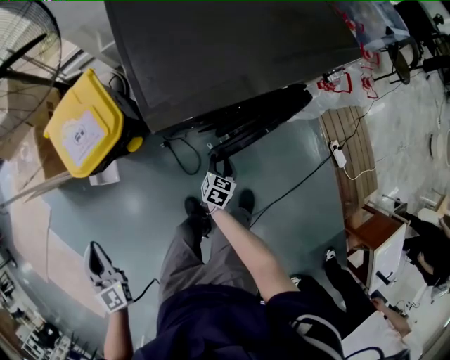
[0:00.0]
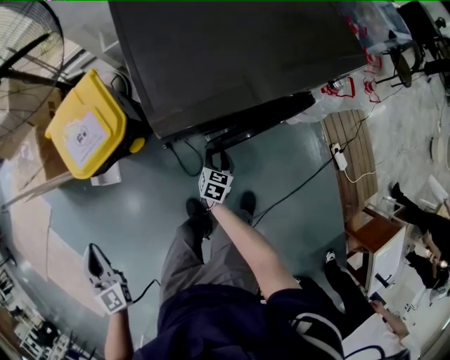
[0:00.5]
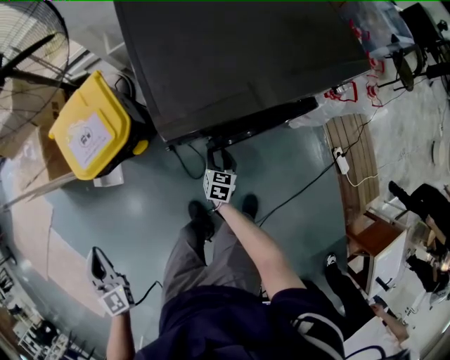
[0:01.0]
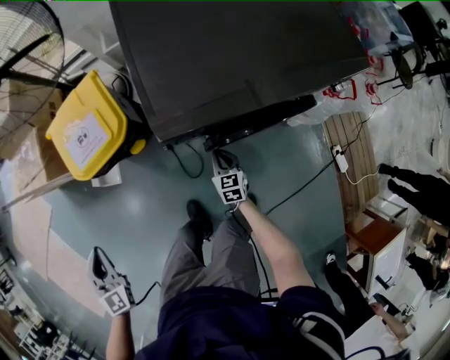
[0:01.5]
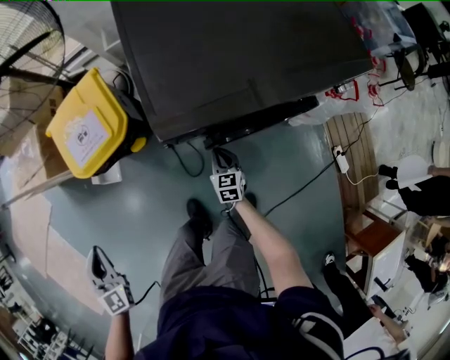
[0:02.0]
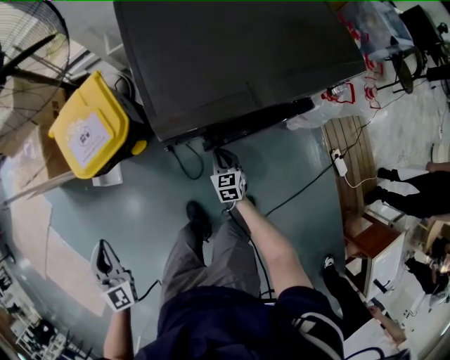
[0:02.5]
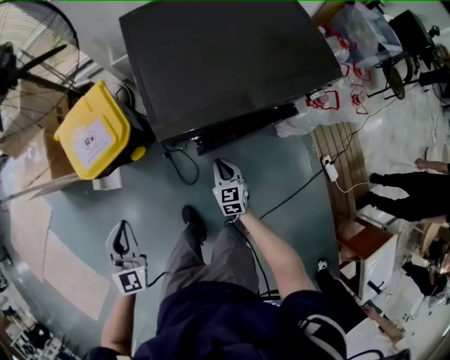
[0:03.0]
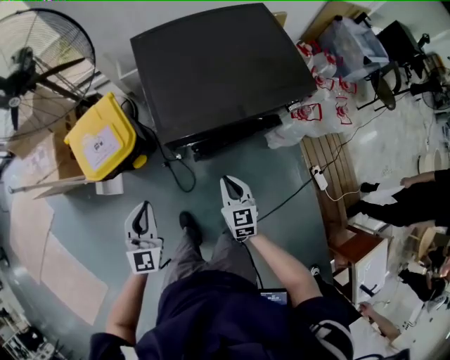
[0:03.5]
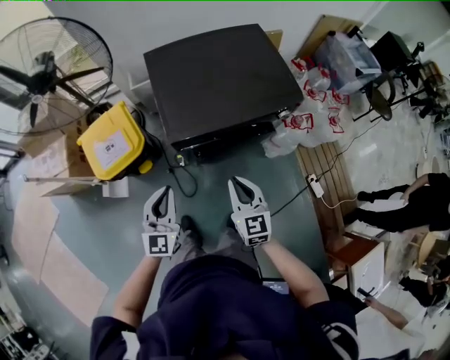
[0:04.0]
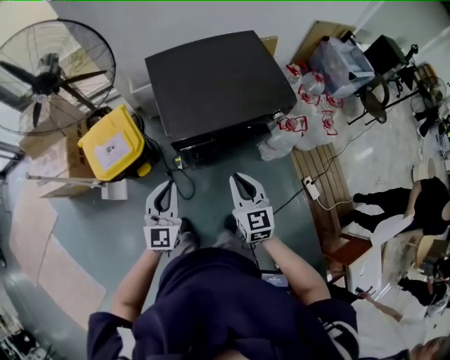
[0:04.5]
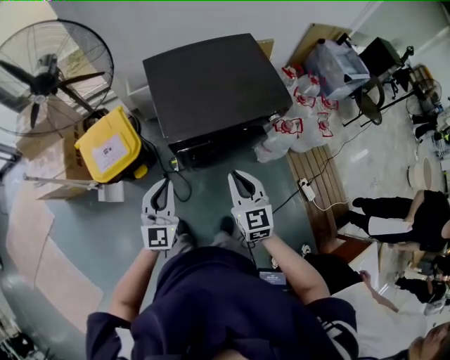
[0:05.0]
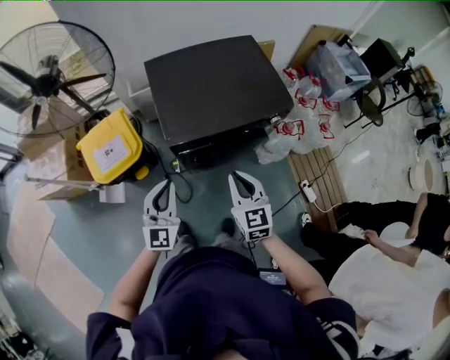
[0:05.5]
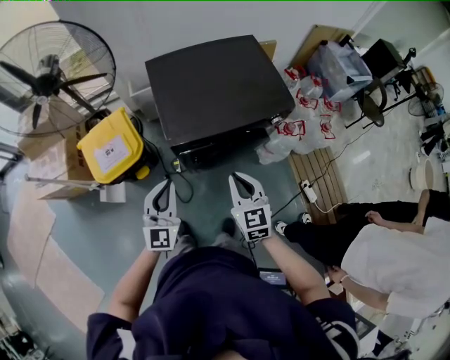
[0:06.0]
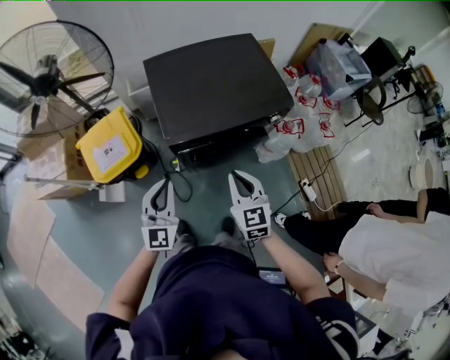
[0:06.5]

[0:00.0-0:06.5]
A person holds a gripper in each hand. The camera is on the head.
0:00.0 to 0:02.0: The right gripper travels forward by approximately 5 cm, swivels about 40 degrees, and closes.
0:02.0 to 0:04.5: The left gripper heads to the right and upward, covering about 35 cm, and turns by some 40 degrees. The right gripper travels upward by about 50 cm, and turns by approximately 20 degrees.
0:04.5 to 0:06.5: There are only small adjustments of the grippers.

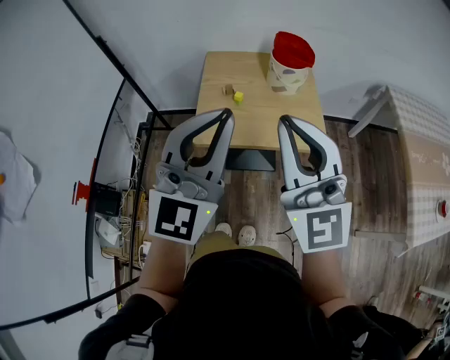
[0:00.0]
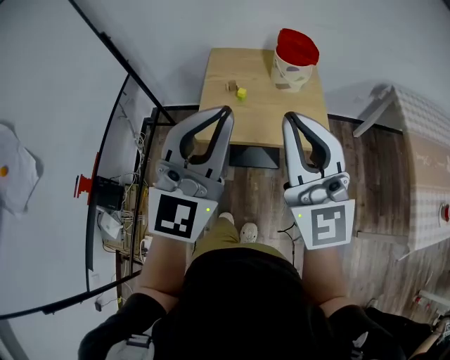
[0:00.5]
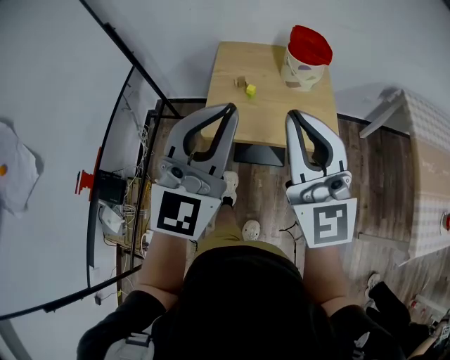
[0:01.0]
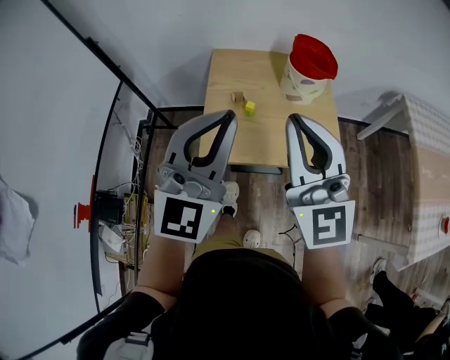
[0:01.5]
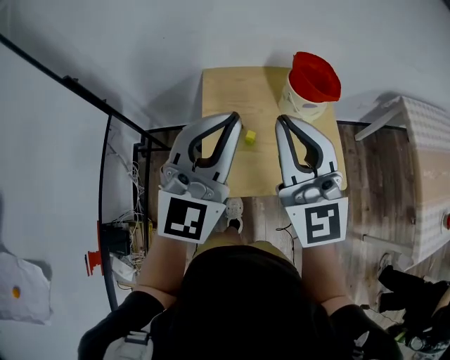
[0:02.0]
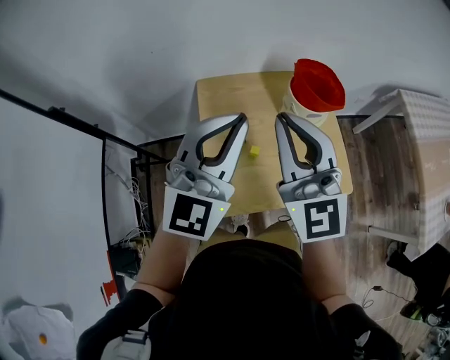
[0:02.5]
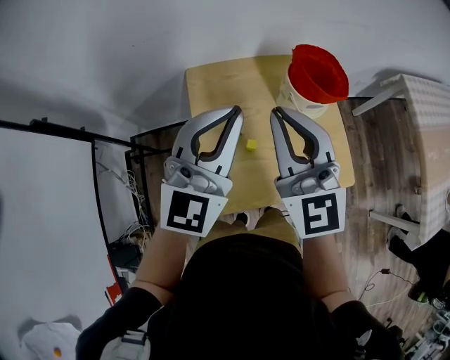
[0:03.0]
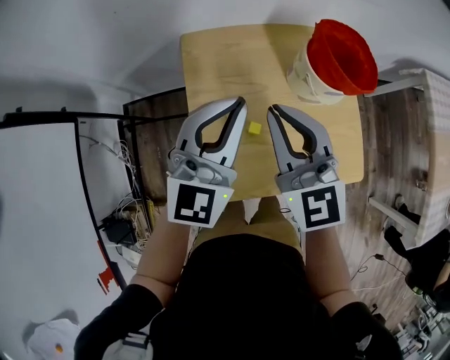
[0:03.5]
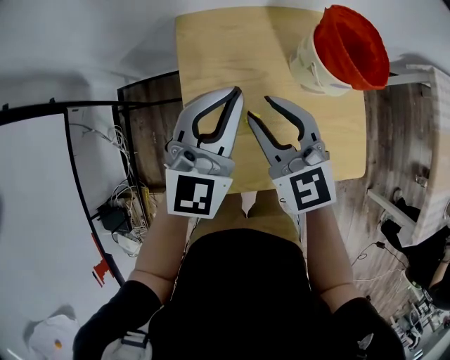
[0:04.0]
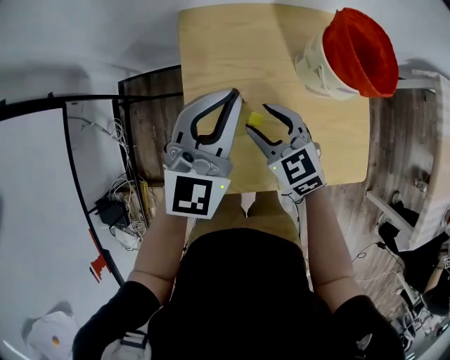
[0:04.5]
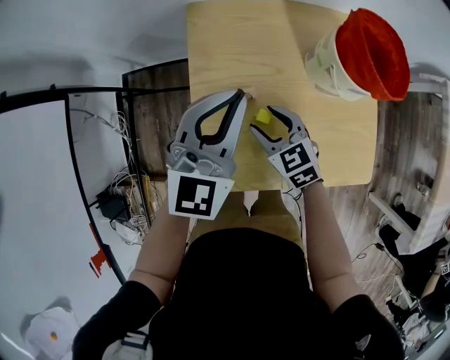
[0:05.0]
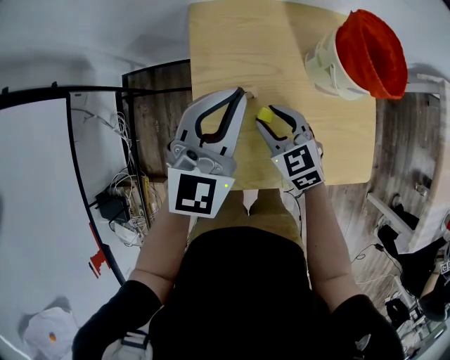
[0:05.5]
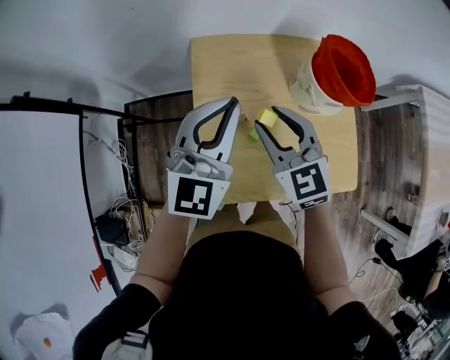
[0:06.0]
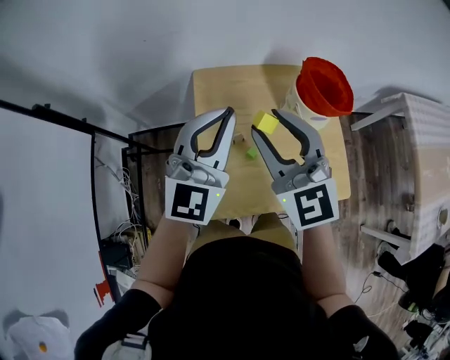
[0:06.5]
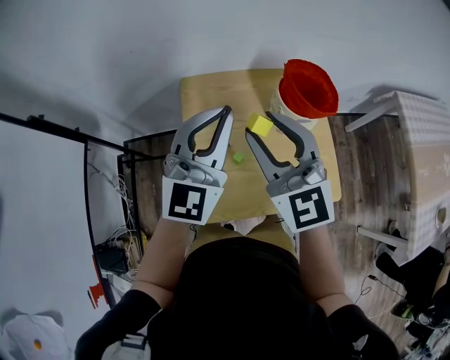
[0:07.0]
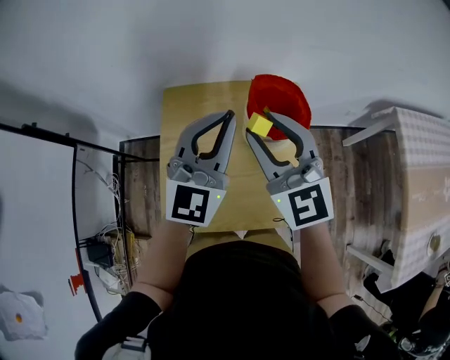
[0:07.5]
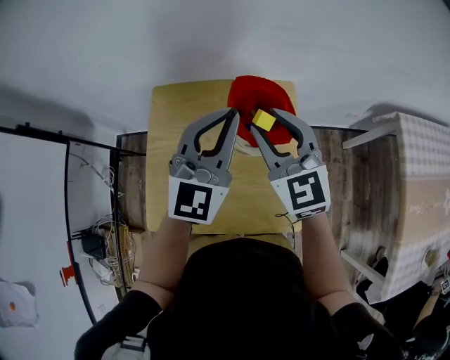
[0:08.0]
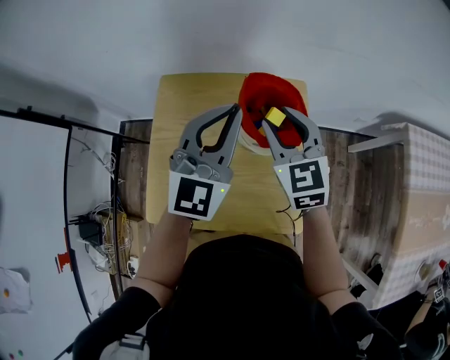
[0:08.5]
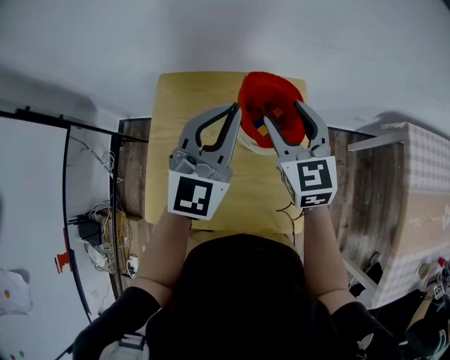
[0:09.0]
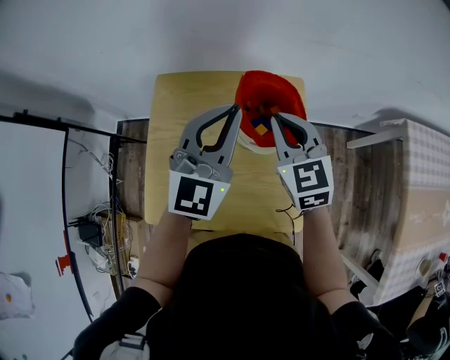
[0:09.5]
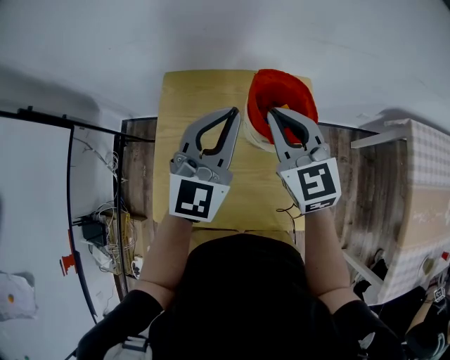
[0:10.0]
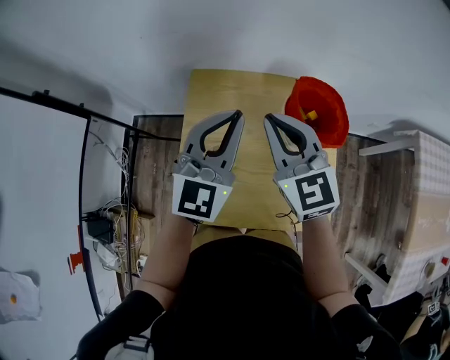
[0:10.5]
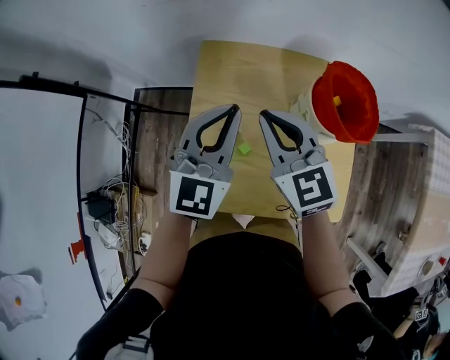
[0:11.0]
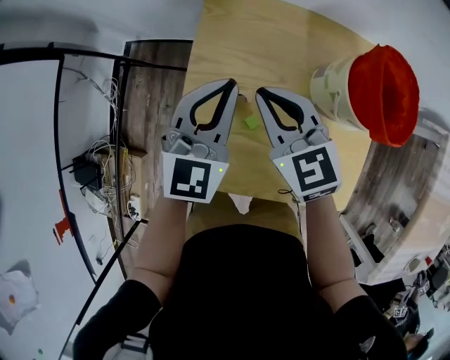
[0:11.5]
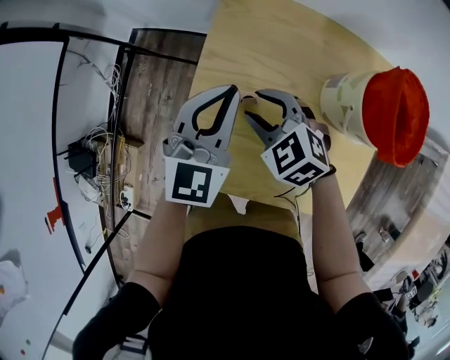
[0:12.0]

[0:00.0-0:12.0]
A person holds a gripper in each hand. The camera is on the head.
0:00.0 to 0:02.0: The grippers both shift forward by some 25 cm.
0:02.0 to 0:04.0: Both grippers travel together downward and forward, approximately 25 cm. The right gripper angles its fingers downward, by about 30 degrees, and opens its fingers.
0:04.0 to 0:06.0: The right gripper goes downward and returns, about 15 cm each way.
0:06.0 to 0:08.0: The right gripper shifts approximately 25 cm to the right and upward; the left gripper goes some 25 cm to the right.
0:08.0 to 0:10.0: The left gripper moves roughly 5 cm. The right gripper closes its fingers.
0:10.0 to 0:12.0: The right gripper changes place by about 35 cm, angles its fingers downward, by roughly 30 degrees, and opens its fingers; the left gripper shifts by some 25 cm, and swivels about 20 degrees.

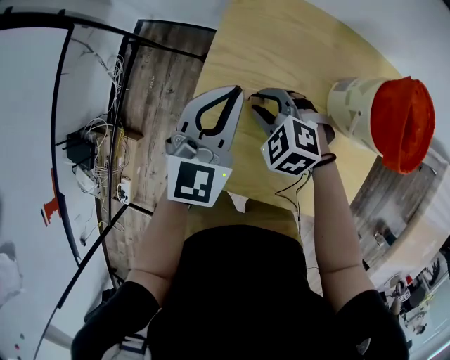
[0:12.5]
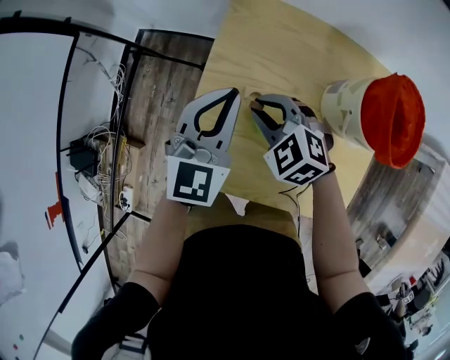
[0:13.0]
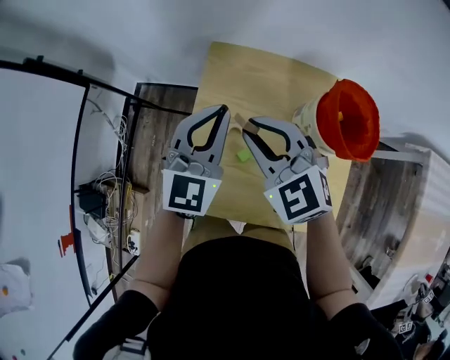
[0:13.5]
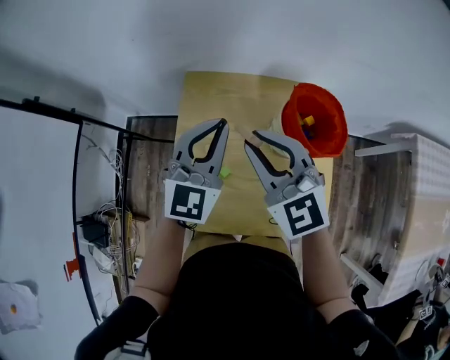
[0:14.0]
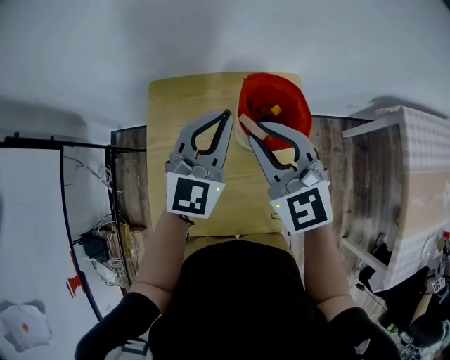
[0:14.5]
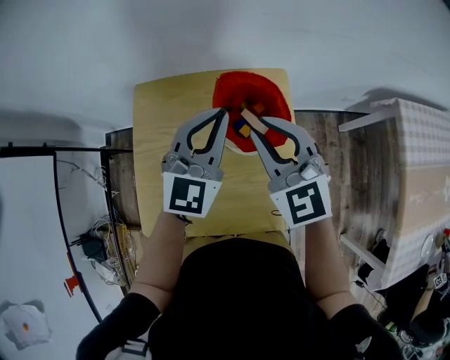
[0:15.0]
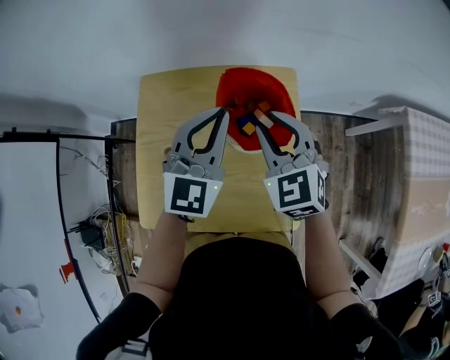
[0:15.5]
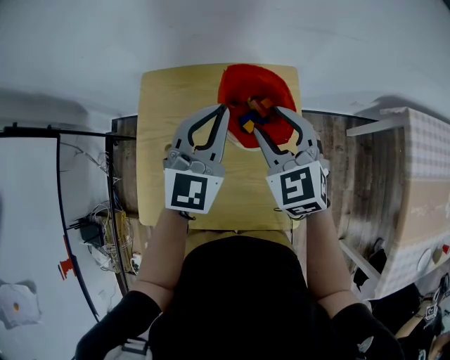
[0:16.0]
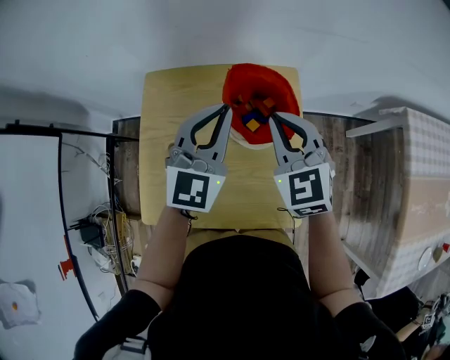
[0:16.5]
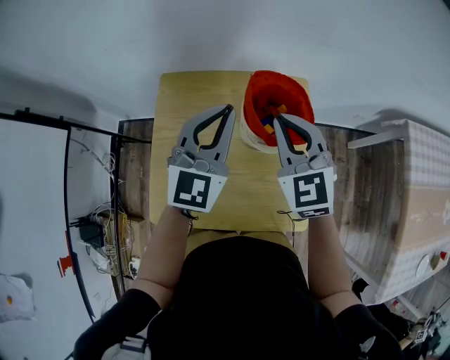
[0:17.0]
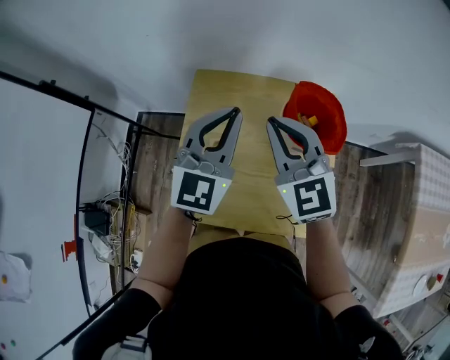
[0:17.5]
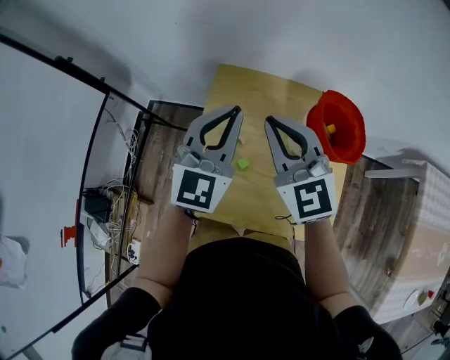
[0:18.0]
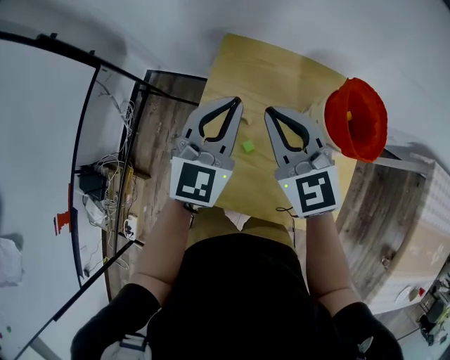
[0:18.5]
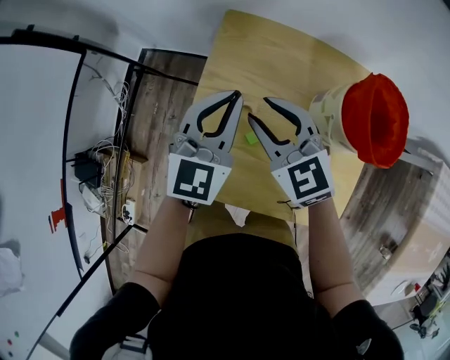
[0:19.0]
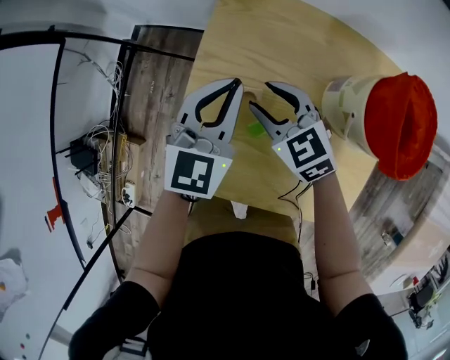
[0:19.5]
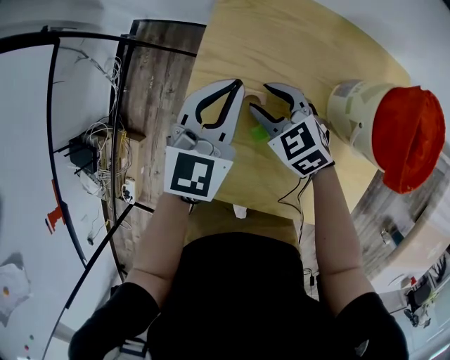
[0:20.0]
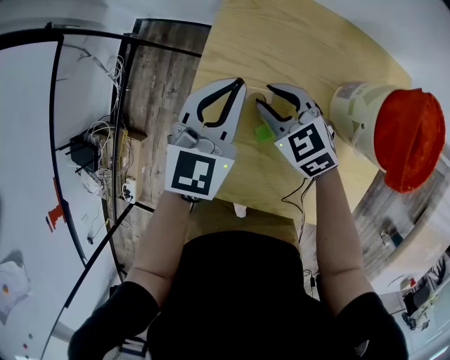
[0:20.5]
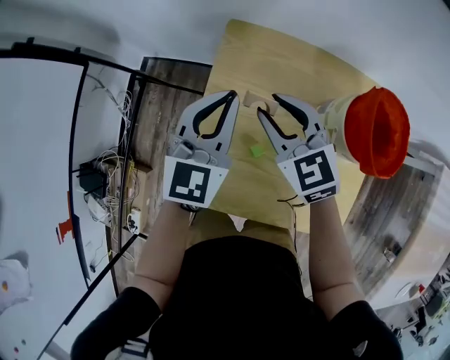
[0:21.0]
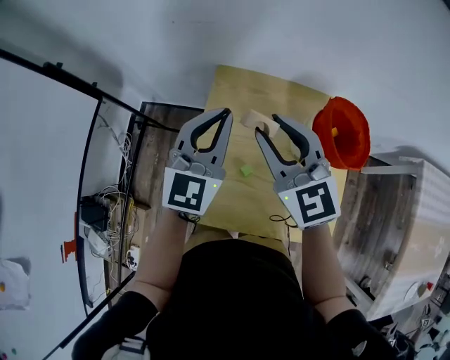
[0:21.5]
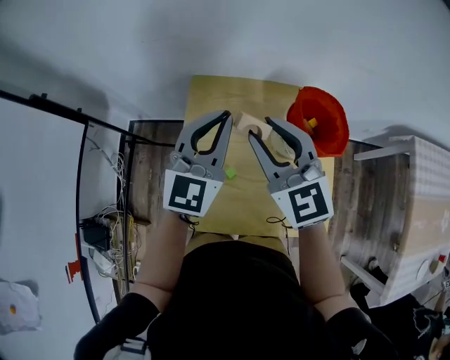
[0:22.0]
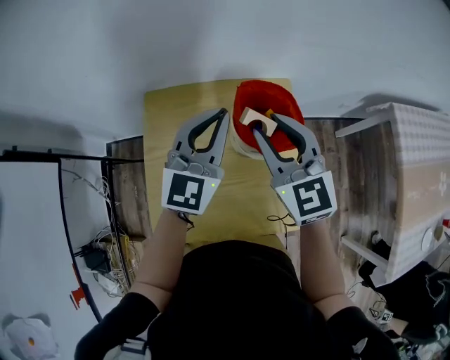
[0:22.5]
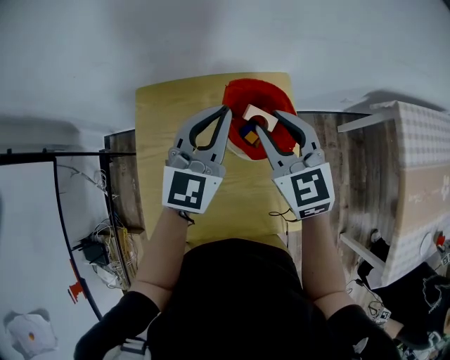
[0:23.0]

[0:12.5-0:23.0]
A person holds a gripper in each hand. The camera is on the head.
0:12.5 to 0:14.5: The left gripper moves about 25 cm, and changes its angle by roughly 20 degrees. The right gripper heads upward, covering about 30 cm, and tilts its fingers about 40 degrees upward.
0:14.5 to 0:16.5: The right gripper moves to the right, some 10 cm, and opens, then closes once more.
0:16.5 to 0:19.0: Both grippers move to the left, some 25 cm. The right gripper swivels about 30 degrees, and opens up.
0:19.0 to 0:21.0: The left gripper moves approximately 10 cm downward and comes back, while the right gripper reaches roughly 15 cm downward, then returns.
0:21.0 to 0:23.0: The two grippers go roughly 25 cm to the right. The left gripper turns by roughly 20 degrees. Meanwhile the right gripper changes its angle by some 30 degrees.
